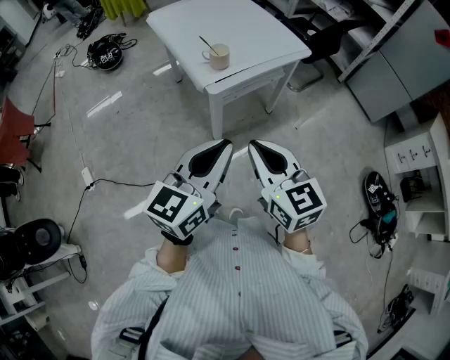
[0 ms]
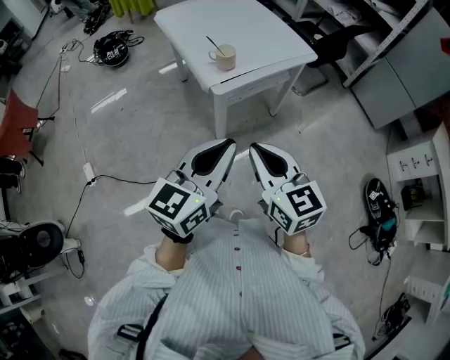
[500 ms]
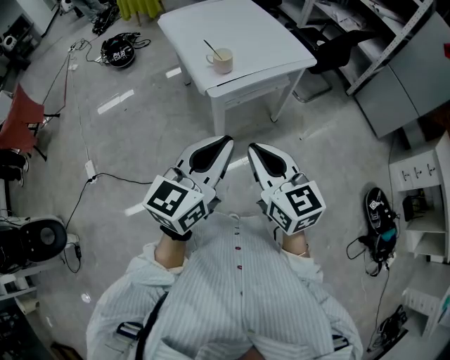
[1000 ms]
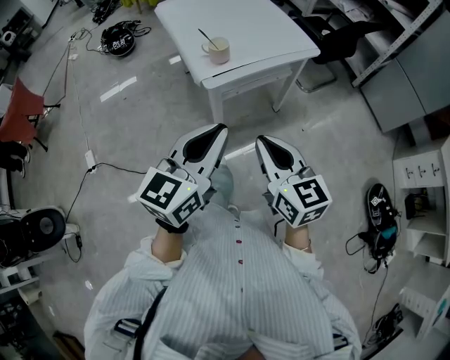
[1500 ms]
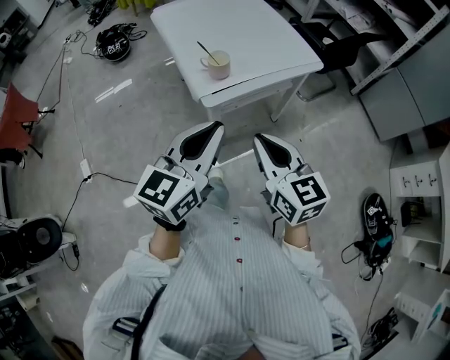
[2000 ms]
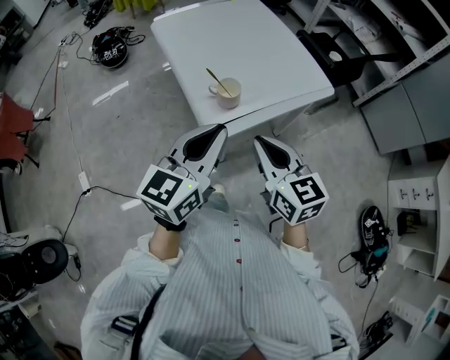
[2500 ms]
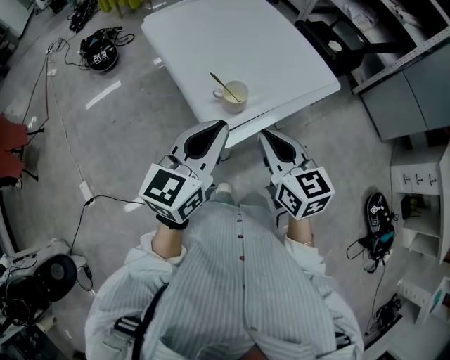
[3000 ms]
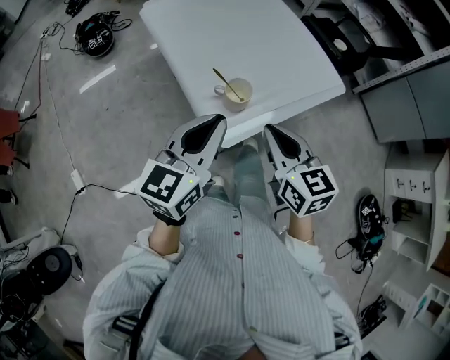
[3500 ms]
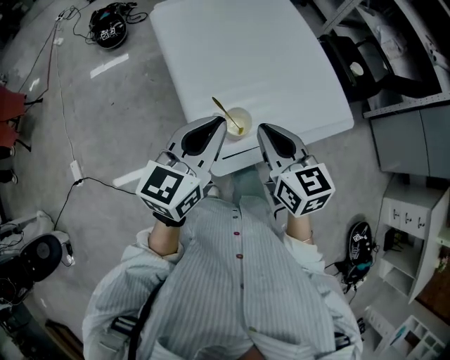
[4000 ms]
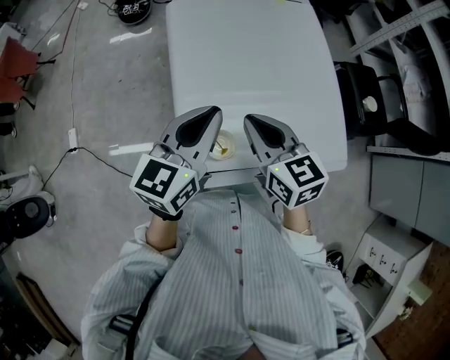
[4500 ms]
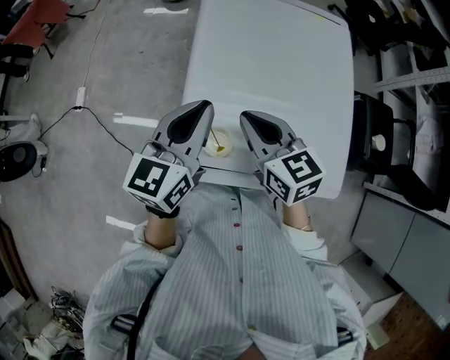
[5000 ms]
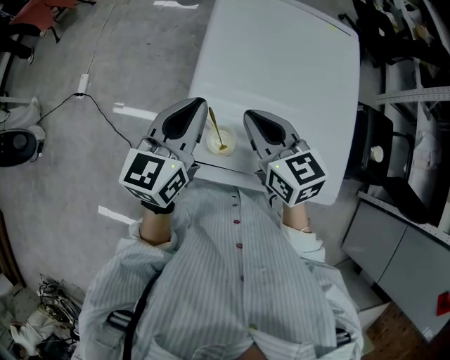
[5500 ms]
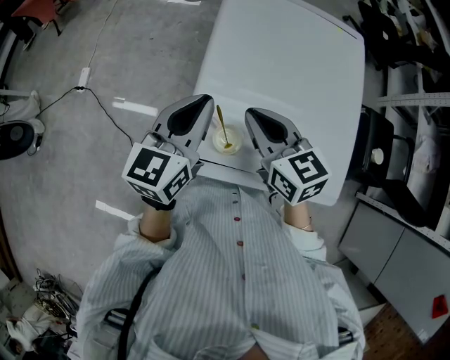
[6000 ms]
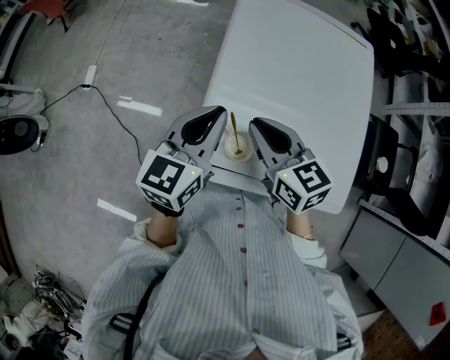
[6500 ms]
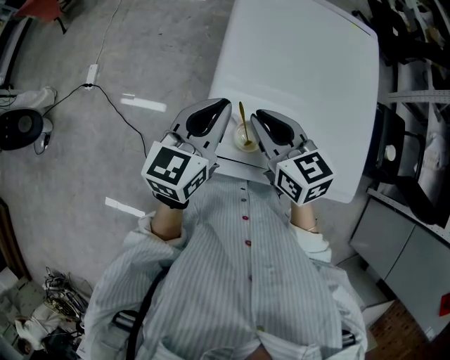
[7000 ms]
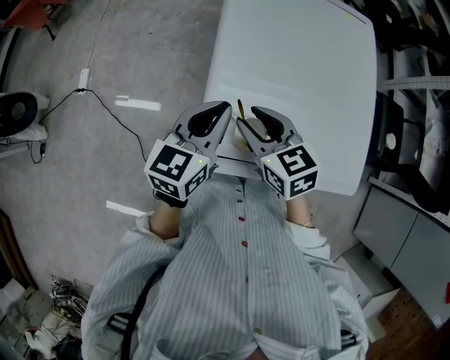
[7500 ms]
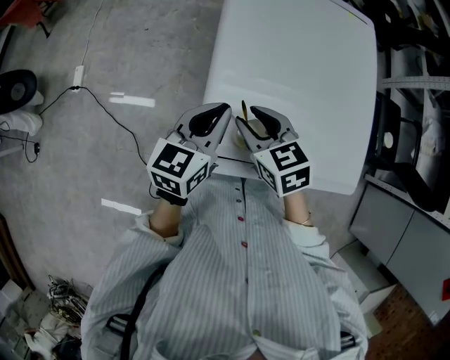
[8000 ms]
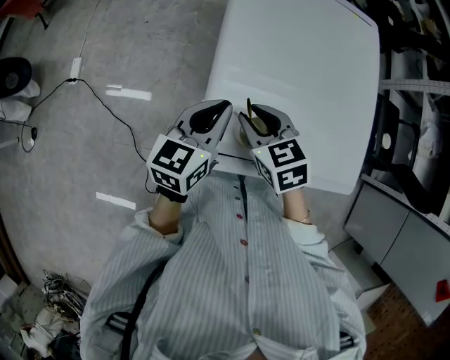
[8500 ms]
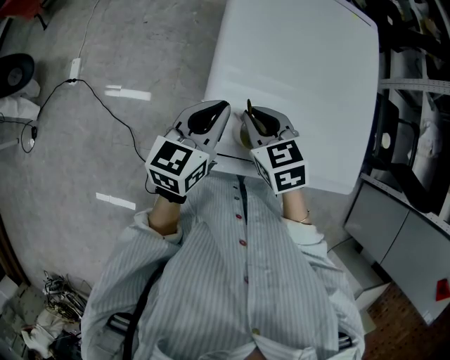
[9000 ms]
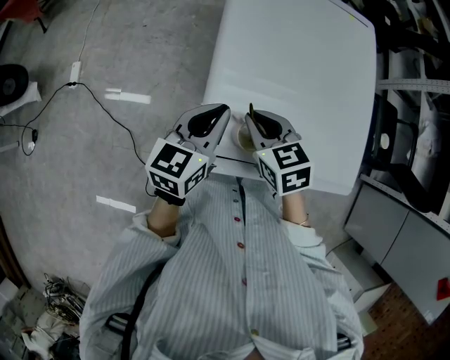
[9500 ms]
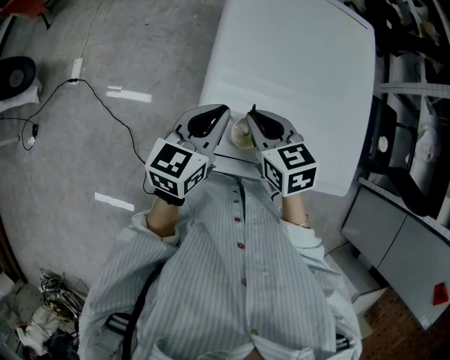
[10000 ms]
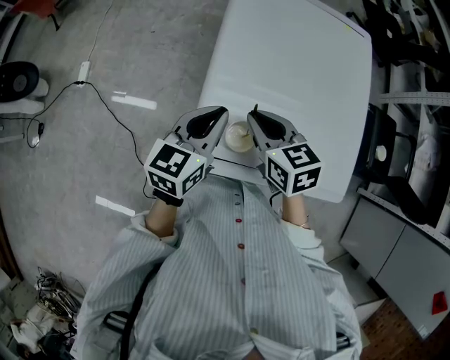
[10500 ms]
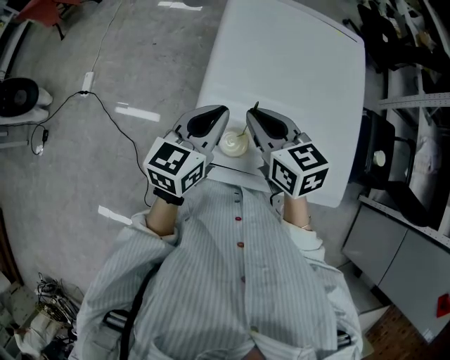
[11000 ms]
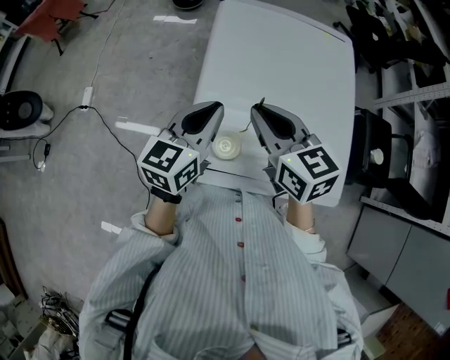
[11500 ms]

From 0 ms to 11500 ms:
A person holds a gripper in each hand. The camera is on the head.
From 0 ms to 2000 ms: The right gripper shifts some 15 cm forward and to the right. Meanwhile the left gripper is displaced forward by about 15 cm.
From 2000 ms to 4000 ms: Both grippers move forward, about 35 cm.
From 4000 ms to 6000 ms: The right gripper ends up approximately 10 cm from where it was, and rotates about 40 degrees; the left gripper ends up approximately 10 cm from where it was, and changes its angle by some 40 degrees.
From 6000 ms to 7500 ms: The left gripper heads downward, covering some 5 cm. Meanwhile the right gripper goes some 10 cm downward and to the left, and opens its fingers.
From 7500 ms to 9500 ms: The right gripper closes its fingers.
From 9500 ms to 11500 ms: The right gripper travels upward and to the right by some 15 cm, and rotates some 20 degrees. Meanwhile the left gripper travels upward by some 10 cm.

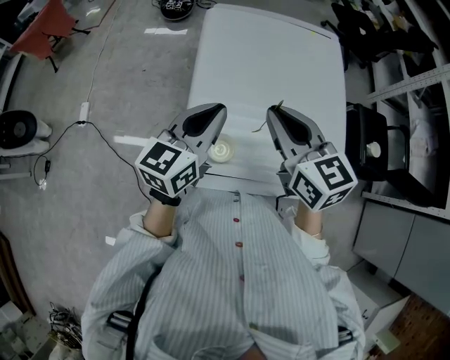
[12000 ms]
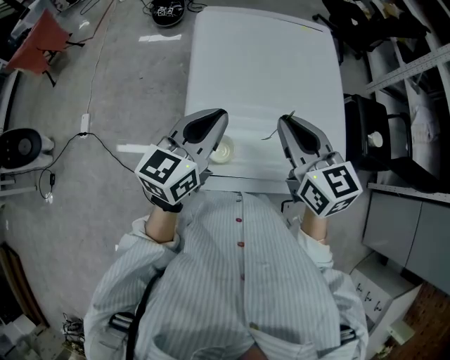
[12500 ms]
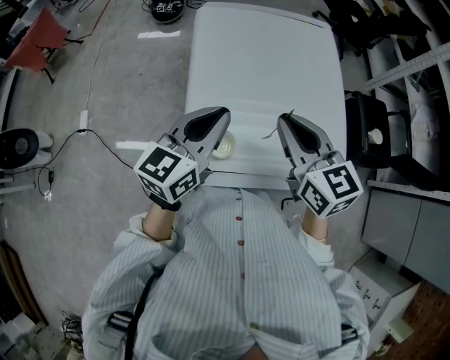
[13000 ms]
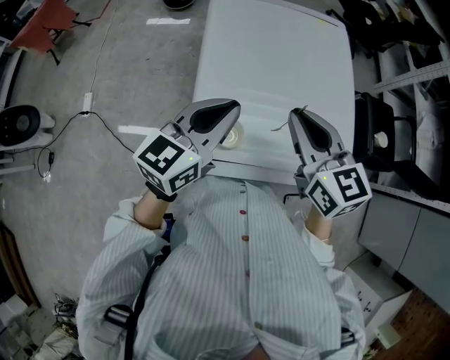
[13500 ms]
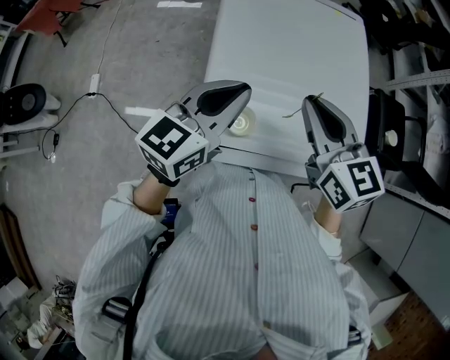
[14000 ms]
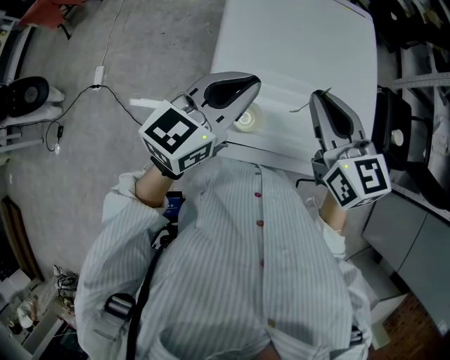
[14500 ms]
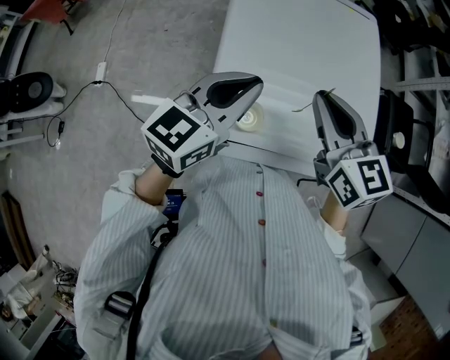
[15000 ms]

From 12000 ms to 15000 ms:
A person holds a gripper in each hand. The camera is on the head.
From 12000 ms to 15000 ms: The grippers move only a little.

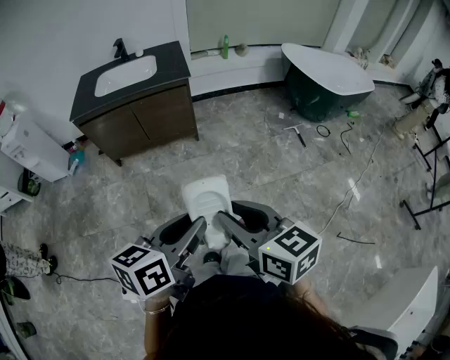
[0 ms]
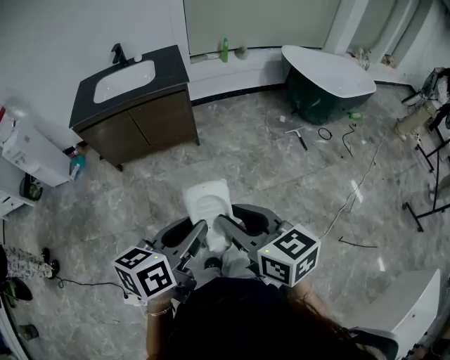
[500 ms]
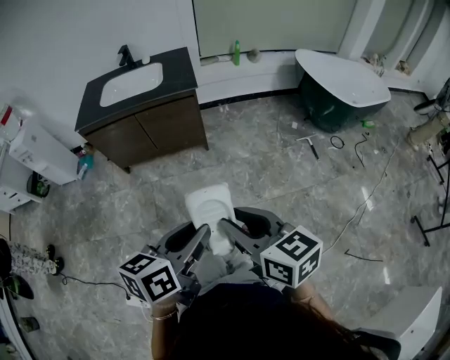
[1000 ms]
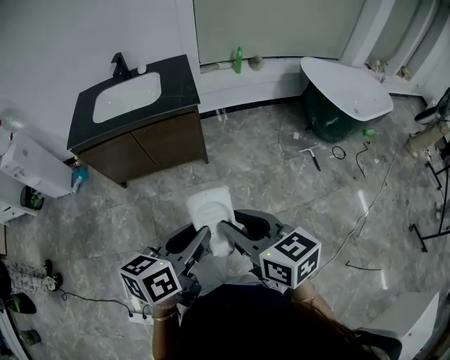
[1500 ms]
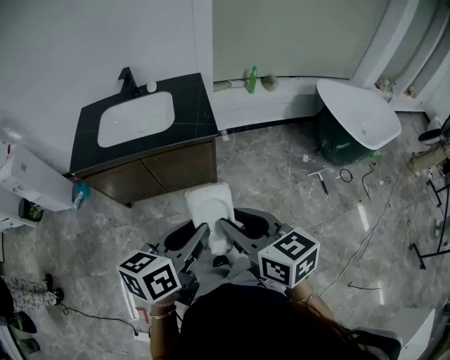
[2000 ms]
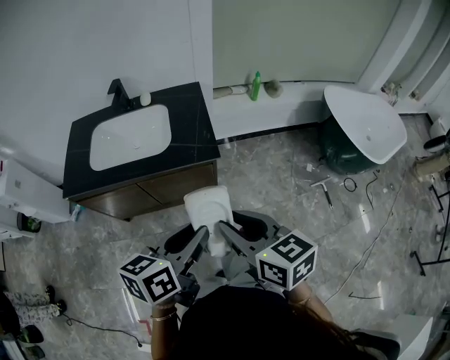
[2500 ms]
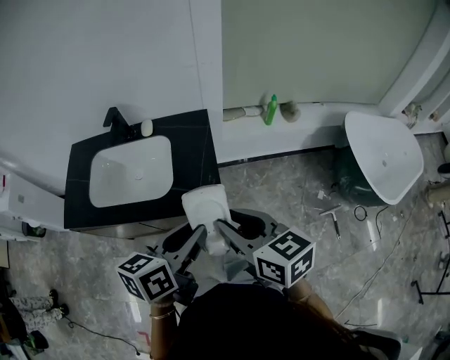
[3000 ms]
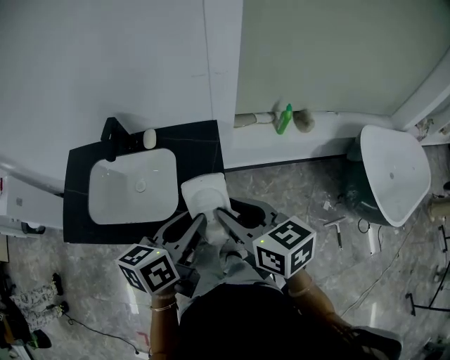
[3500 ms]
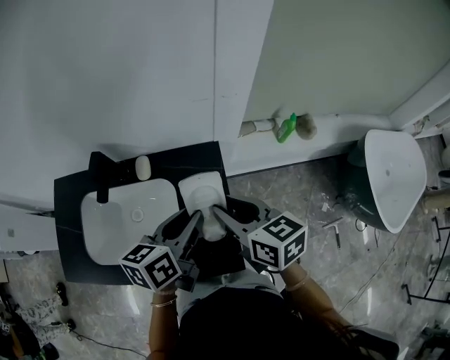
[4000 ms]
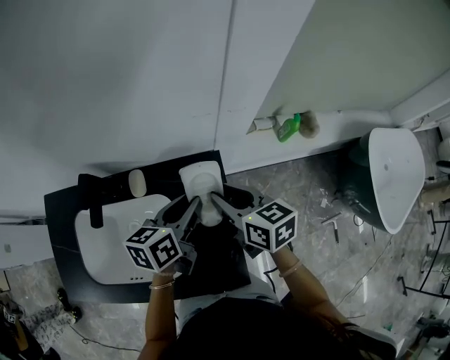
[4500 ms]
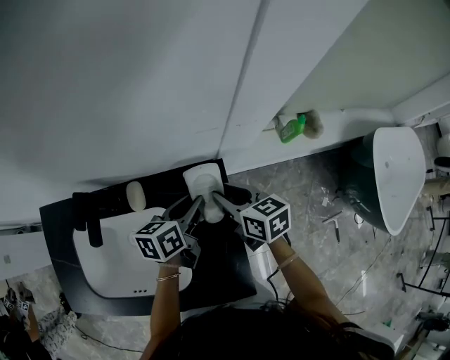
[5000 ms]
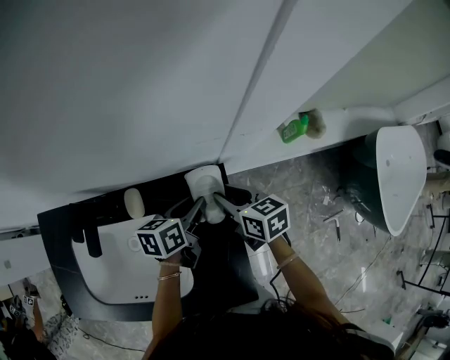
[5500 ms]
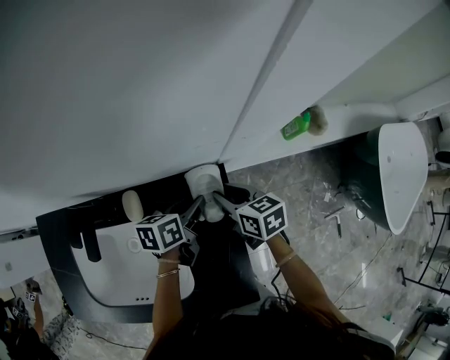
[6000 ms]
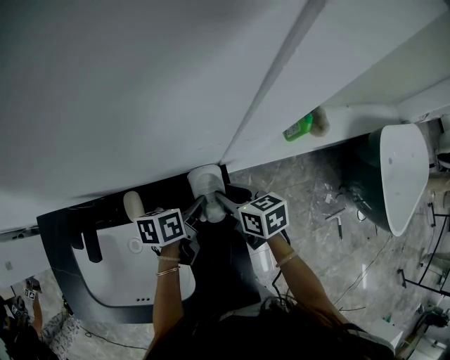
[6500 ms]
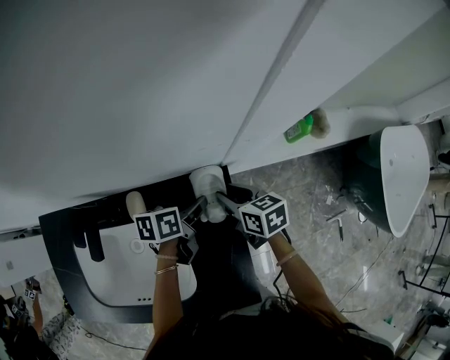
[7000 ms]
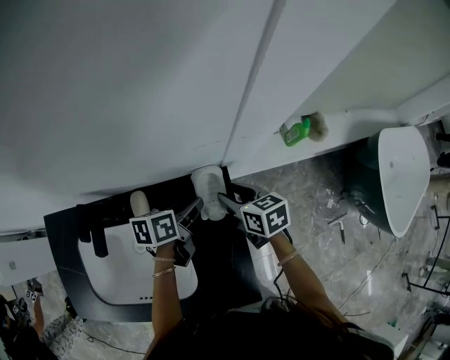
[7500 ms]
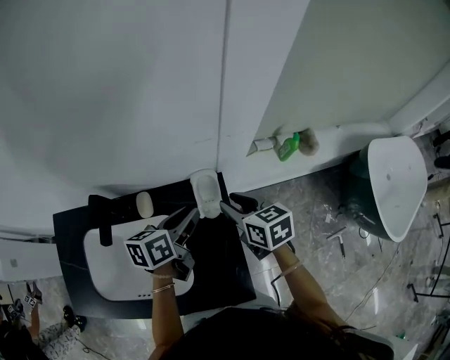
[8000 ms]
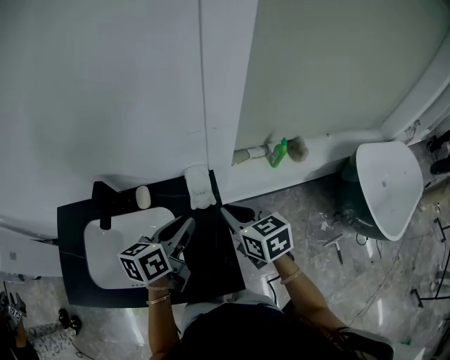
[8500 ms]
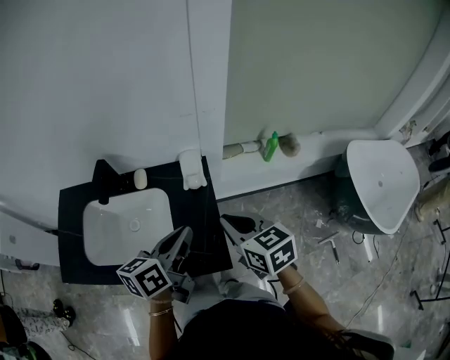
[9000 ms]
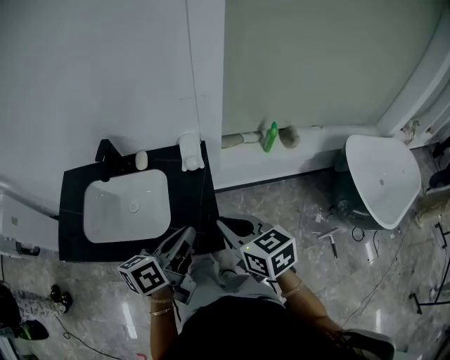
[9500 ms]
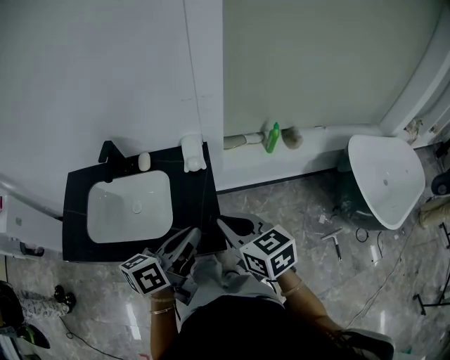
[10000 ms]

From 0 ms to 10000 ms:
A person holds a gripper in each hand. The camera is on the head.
From 0 ms to 2000 ms: Both grippers move forward, roughly 35 cm.
From 2000 ms to 4000 ms: The two grippers travel together, forward, about 60 cm.
From 4000 ms to 6000 ms: The two grippers go approximately 25 cm downward and forward.
From 6000 ms to 8000 ms: Both grippers travel together upward, about 10 cm.
From 8000 ms to 10000 ms: Both grippers move backward, about 30 cm. The right gripper closes its fingers.

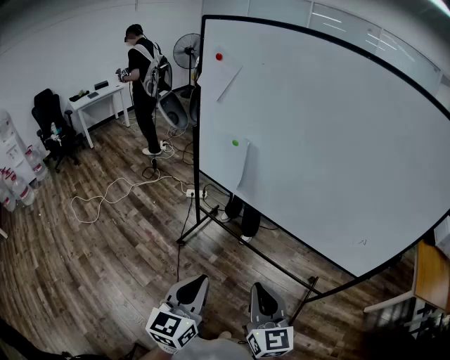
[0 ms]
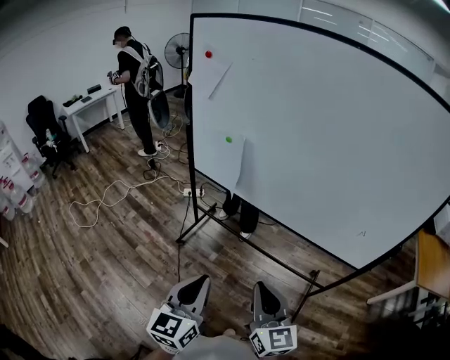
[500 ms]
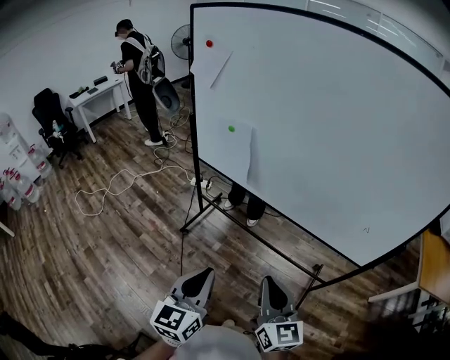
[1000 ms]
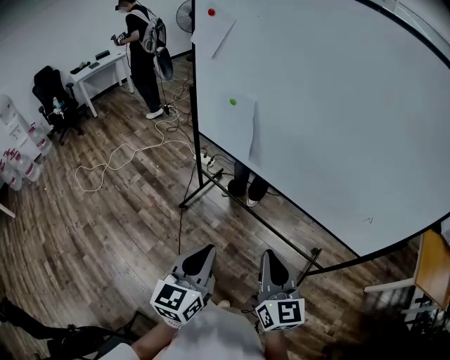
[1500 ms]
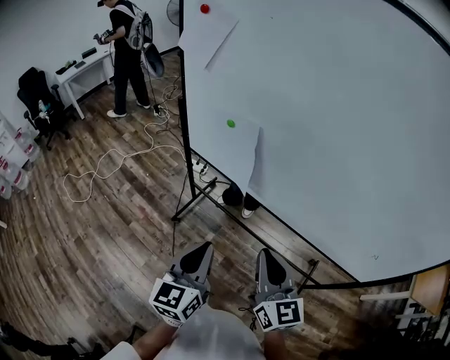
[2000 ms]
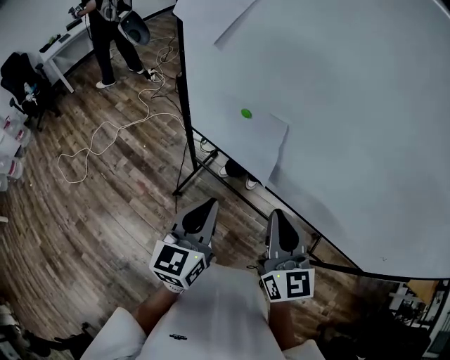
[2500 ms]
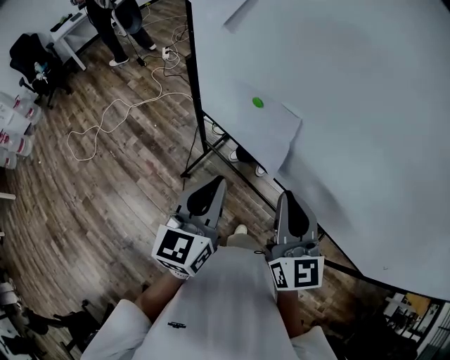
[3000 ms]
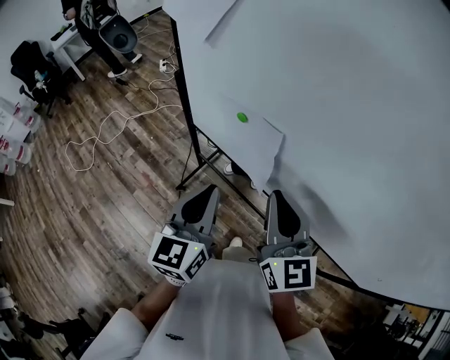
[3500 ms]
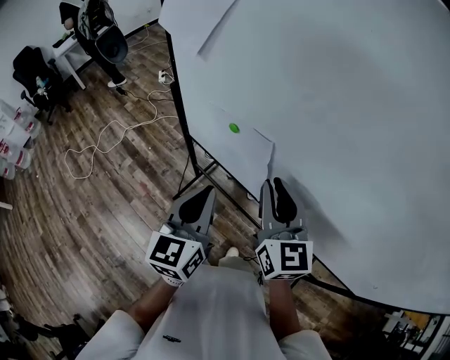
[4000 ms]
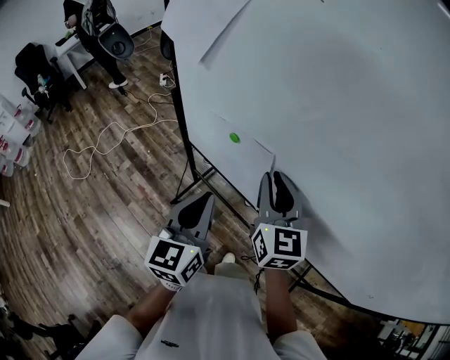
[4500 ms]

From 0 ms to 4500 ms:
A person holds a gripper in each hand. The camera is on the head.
From 0 ms to 2000 ms: The grippers both shift forward by about 20 cm.
From 2000 ms to 4500 ms: Both grippers move forward, approximately 25 cm.
